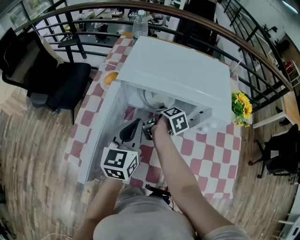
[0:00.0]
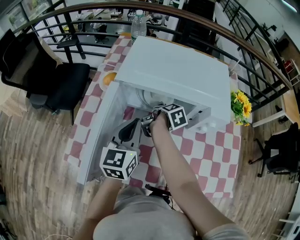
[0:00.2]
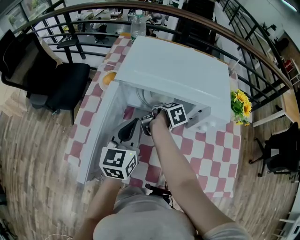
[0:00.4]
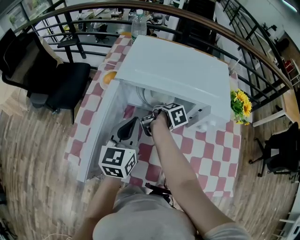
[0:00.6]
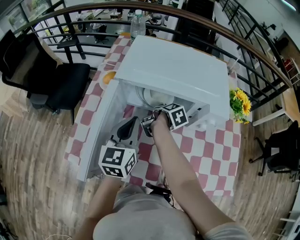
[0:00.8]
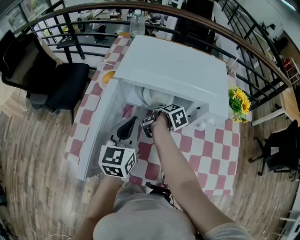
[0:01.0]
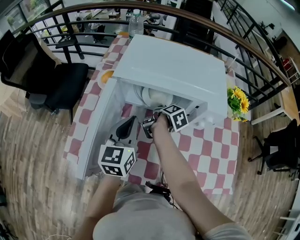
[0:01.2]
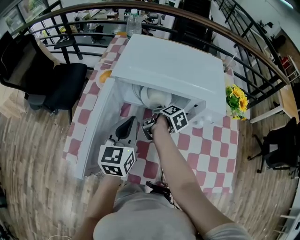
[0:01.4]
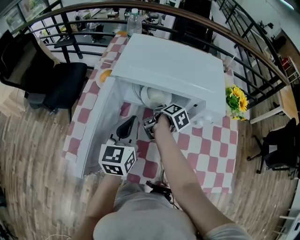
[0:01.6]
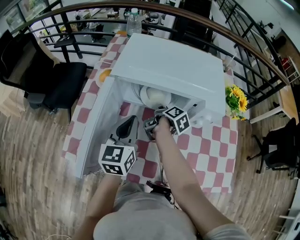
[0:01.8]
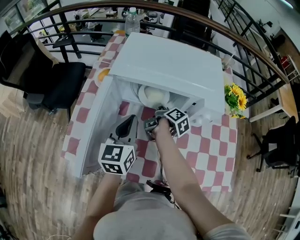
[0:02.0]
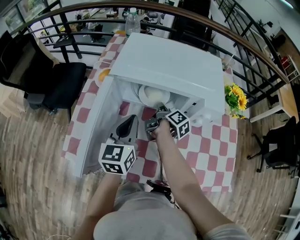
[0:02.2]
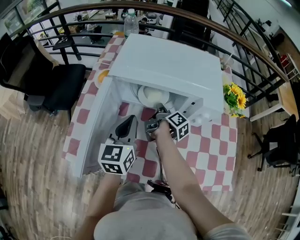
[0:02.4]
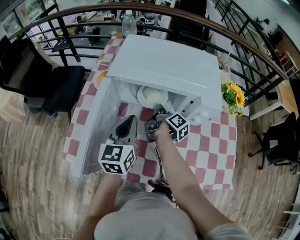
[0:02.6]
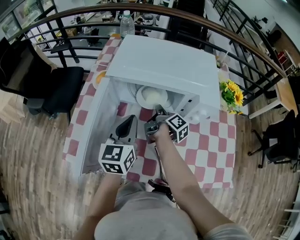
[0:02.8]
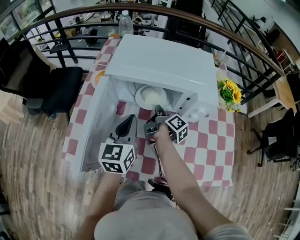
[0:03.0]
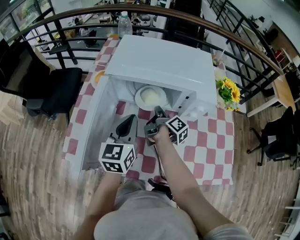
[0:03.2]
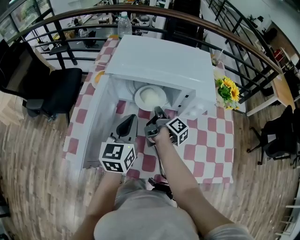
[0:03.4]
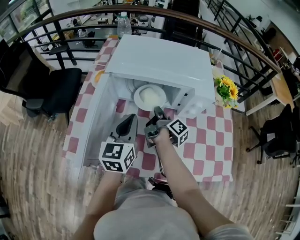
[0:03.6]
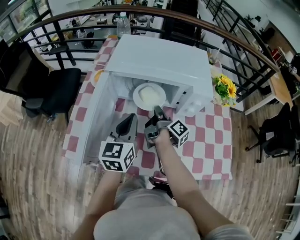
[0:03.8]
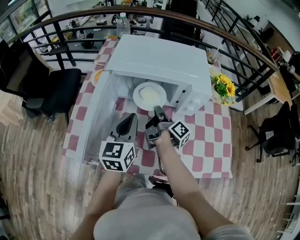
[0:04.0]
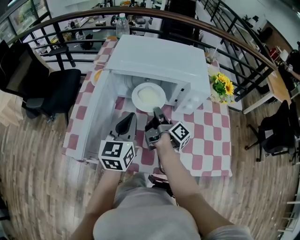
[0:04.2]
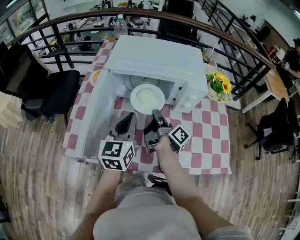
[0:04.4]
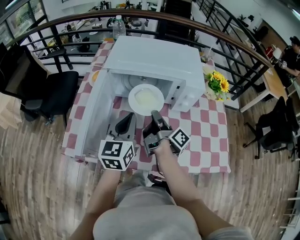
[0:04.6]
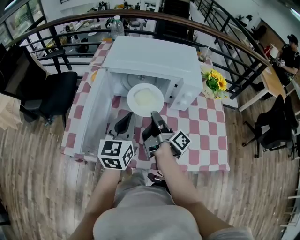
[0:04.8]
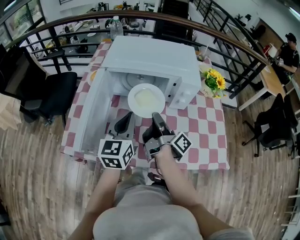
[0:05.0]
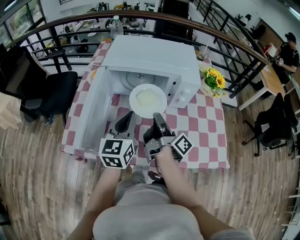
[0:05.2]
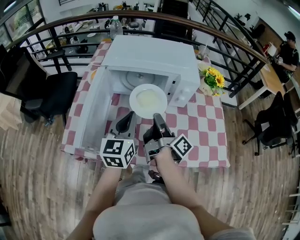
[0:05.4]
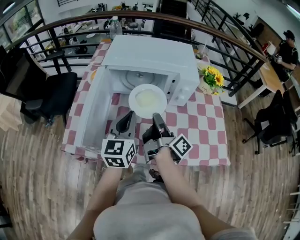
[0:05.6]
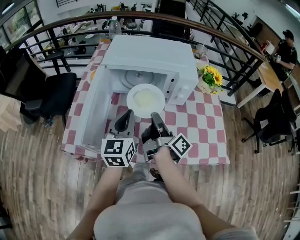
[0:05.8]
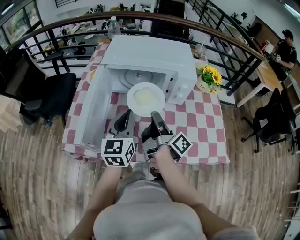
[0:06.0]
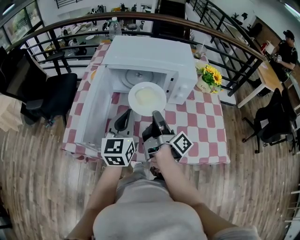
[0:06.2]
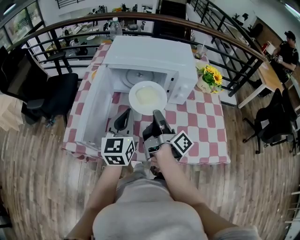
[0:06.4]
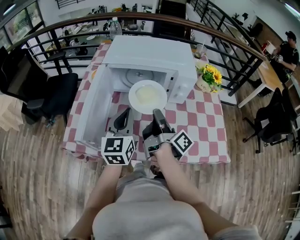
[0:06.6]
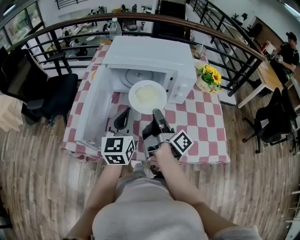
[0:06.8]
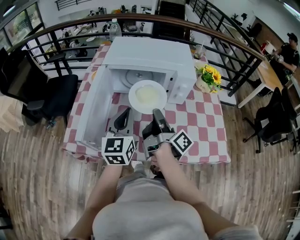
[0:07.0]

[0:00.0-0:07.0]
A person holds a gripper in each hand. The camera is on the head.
0:00.0 to 0:01.4: The right gripper closes up.
0:01.4 to 0:02.8: The right gripper changes its angle by some 30 degrees, and closes its fingers.
0:02.8 to 0:04.2: The right gripper is displaced backward and upward by roughly 10 cm, while the left gripper changes place by roughly 5 cm.
0:04.2 to 0:05.6: The right gripper goes roughly 10 cm backward and upward.
0:05.6 to 0:07.0: The grippers stay close to where they were, moving slightly.

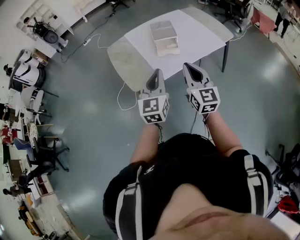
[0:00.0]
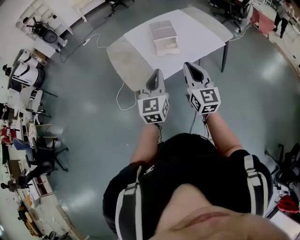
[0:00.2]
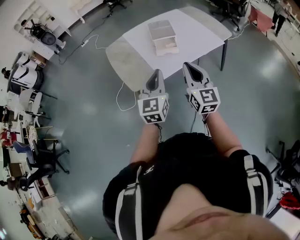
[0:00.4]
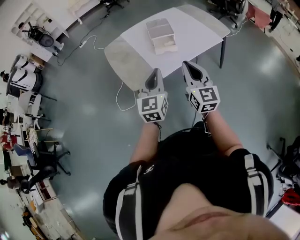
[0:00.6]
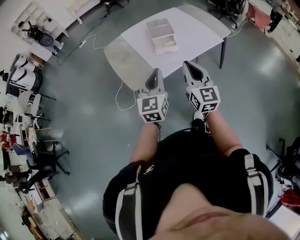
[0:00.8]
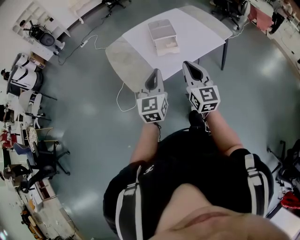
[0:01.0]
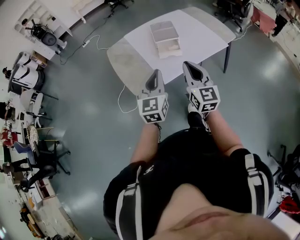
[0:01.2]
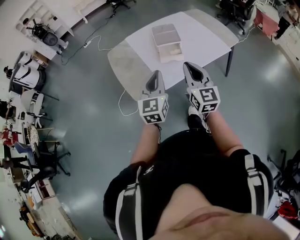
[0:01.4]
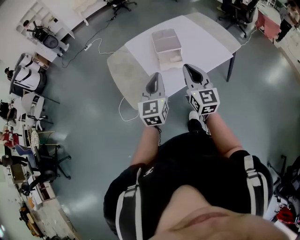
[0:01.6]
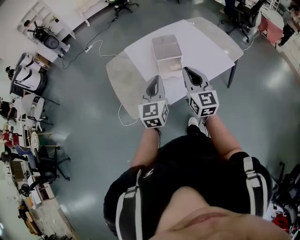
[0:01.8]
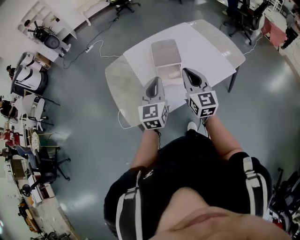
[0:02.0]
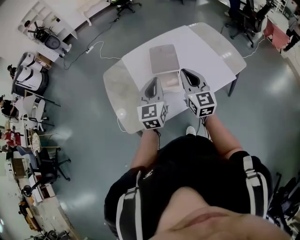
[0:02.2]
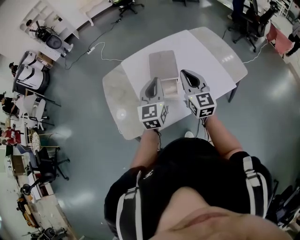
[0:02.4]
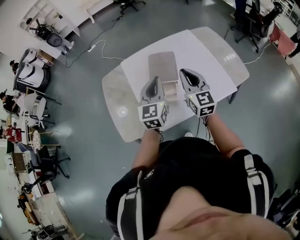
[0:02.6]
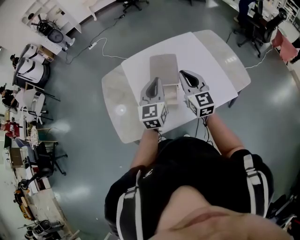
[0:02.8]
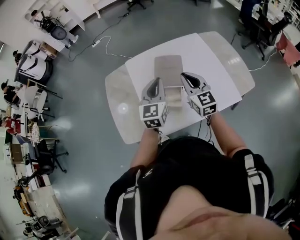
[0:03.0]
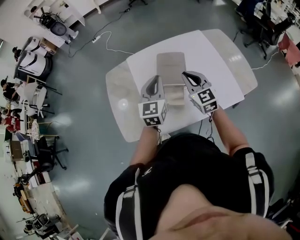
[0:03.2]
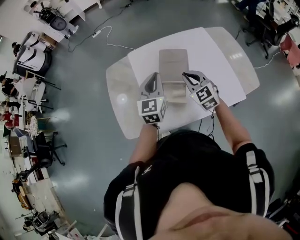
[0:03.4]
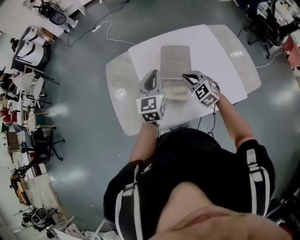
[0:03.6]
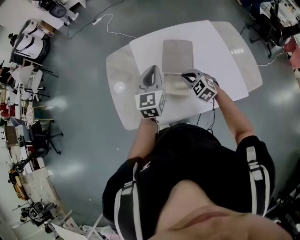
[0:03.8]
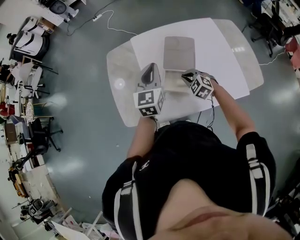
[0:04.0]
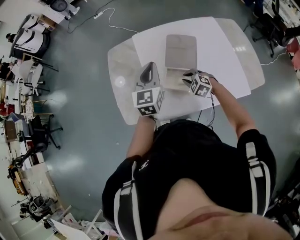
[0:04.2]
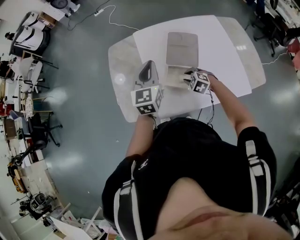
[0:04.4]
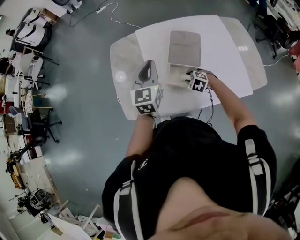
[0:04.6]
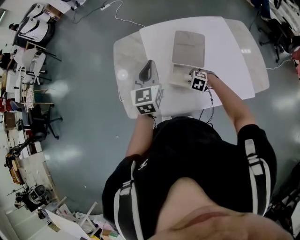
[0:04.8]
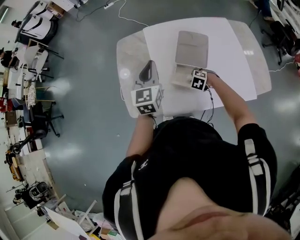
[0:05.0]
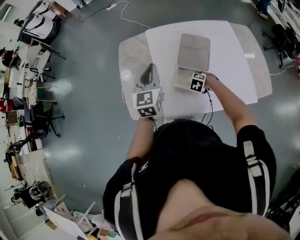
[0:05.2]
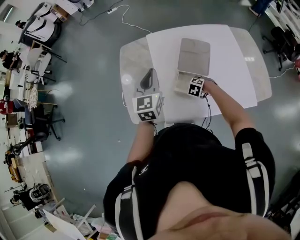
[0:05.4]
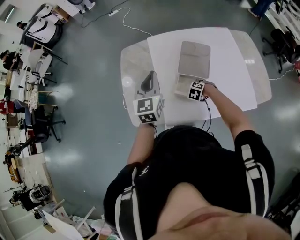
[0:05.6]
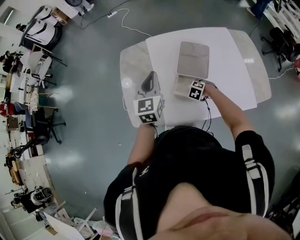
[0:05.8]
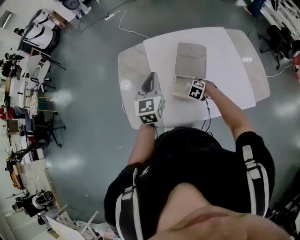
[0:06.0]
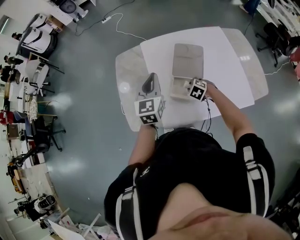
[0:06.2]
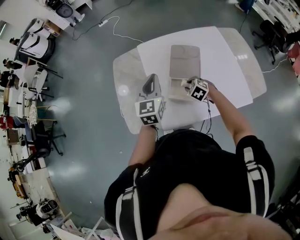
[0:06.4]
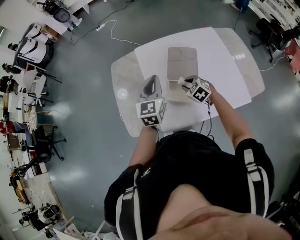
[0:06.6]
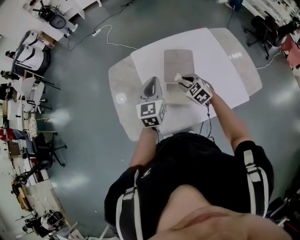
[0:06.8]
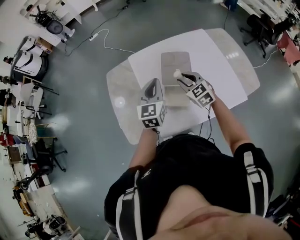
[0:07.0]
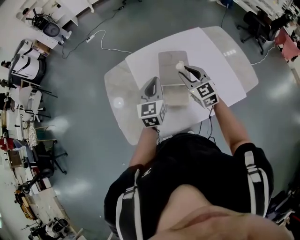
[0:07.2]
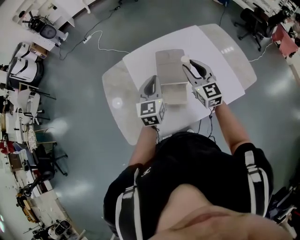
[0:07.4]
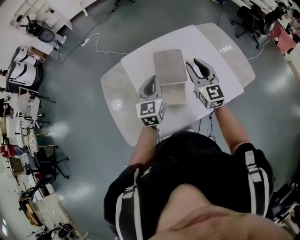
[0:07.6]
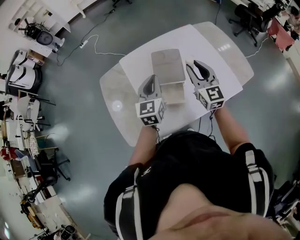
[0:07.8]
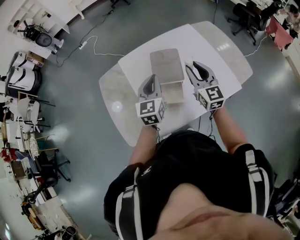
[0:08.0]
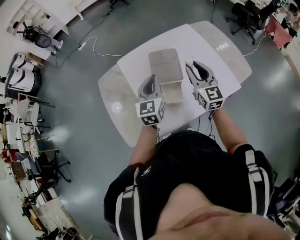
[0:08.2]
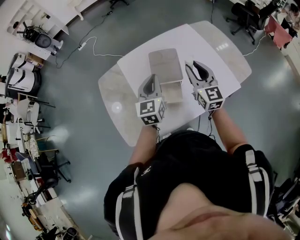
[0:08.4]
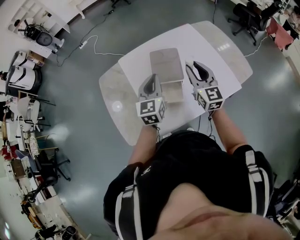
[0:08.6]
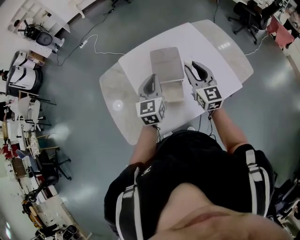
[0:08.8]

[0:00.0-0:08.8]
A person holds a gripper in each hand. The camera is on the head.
0:00.0 to 0:01.4: The two grippers go roughly 10 cm forward.
0:01.4 to 0:03.0: The two grippers go approximately 35 cm forward. The right gripper turns by approximately 20 degrees.
0:03.0 to 0:04.4: The right gripper goes about 25 cm downward, and tilts its fingers approximately 50 degrees downward. The left gripper goes approximately 10 cm to the left.
0:04.4 to 0:05.8: The left gripper changes place by some 5 cm; the right gripper heads downward, covering approximately 10 cm.
0:05.8 to 0:07.4: The left gripper shifts by about 10 cm. Meanwhile the right gripper goes roughly 35 cm upward, and tips its fingers upward by about 70 degrees.
0:07.4 to 0:08.8: The grippers move only a little.

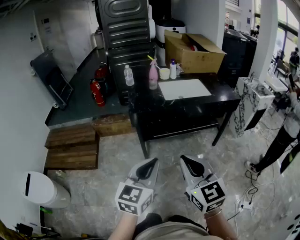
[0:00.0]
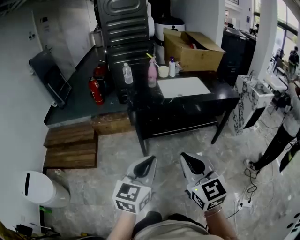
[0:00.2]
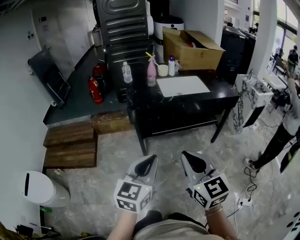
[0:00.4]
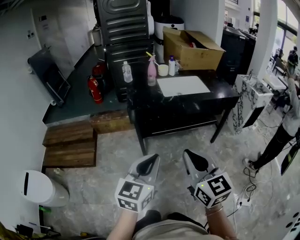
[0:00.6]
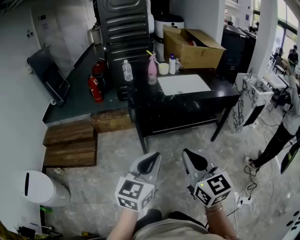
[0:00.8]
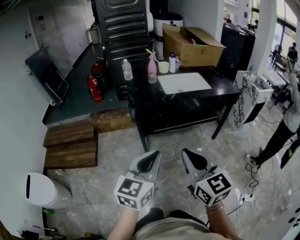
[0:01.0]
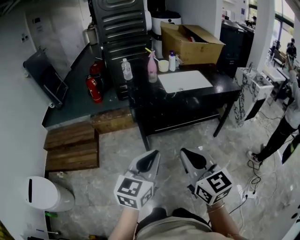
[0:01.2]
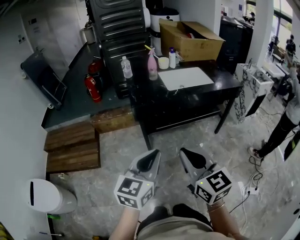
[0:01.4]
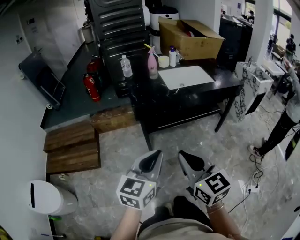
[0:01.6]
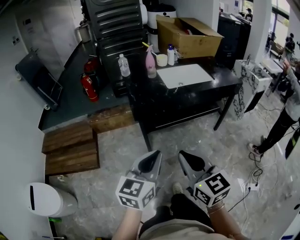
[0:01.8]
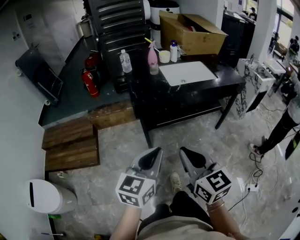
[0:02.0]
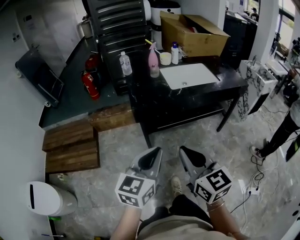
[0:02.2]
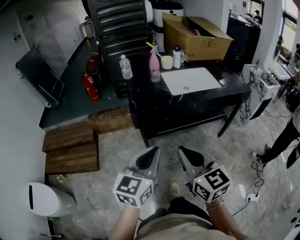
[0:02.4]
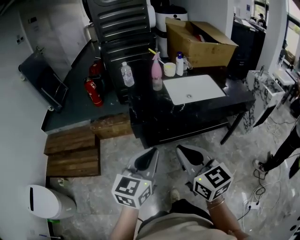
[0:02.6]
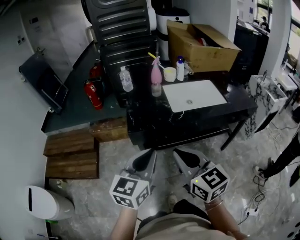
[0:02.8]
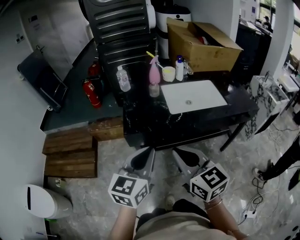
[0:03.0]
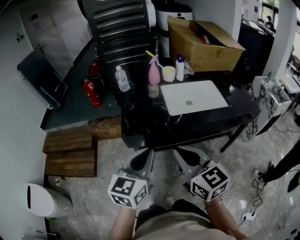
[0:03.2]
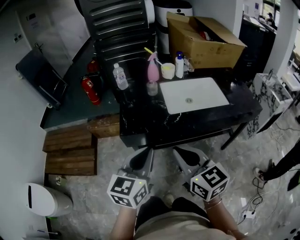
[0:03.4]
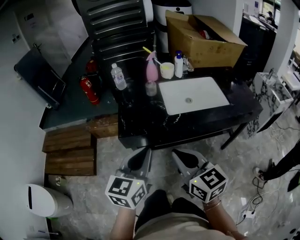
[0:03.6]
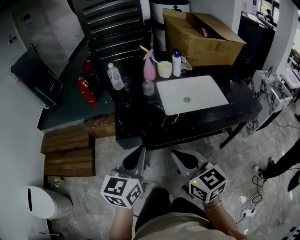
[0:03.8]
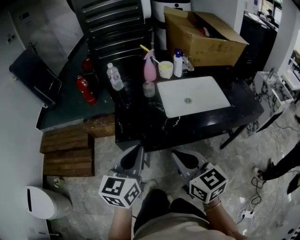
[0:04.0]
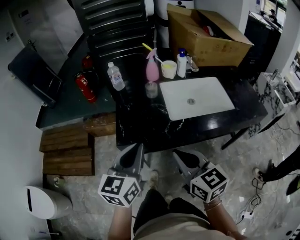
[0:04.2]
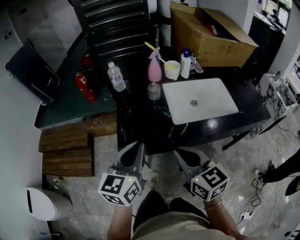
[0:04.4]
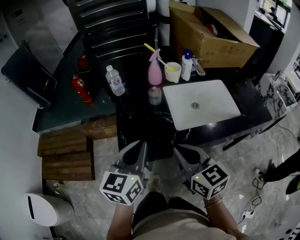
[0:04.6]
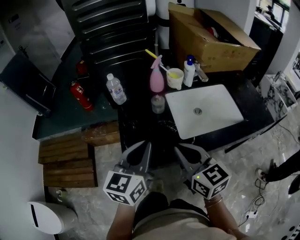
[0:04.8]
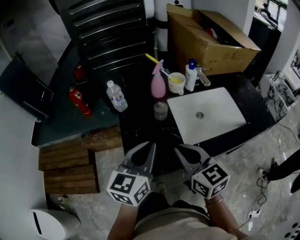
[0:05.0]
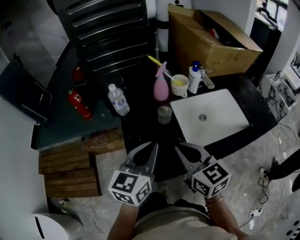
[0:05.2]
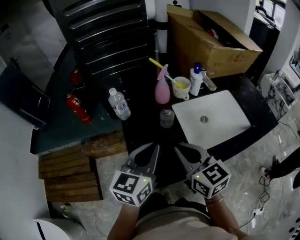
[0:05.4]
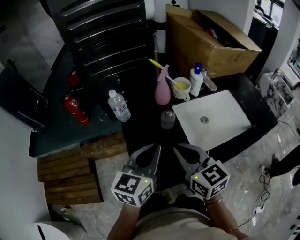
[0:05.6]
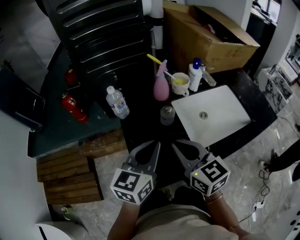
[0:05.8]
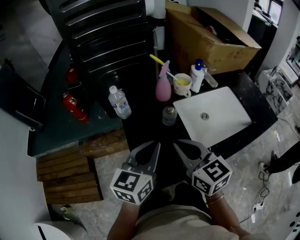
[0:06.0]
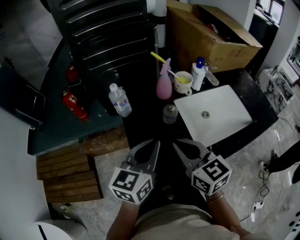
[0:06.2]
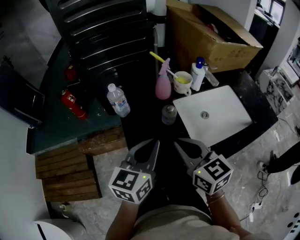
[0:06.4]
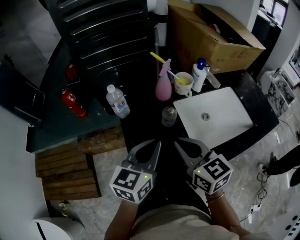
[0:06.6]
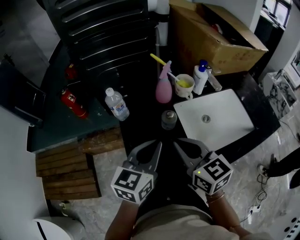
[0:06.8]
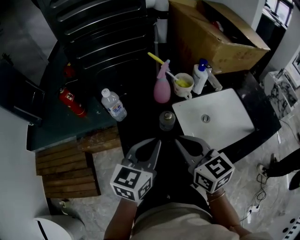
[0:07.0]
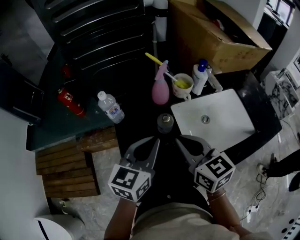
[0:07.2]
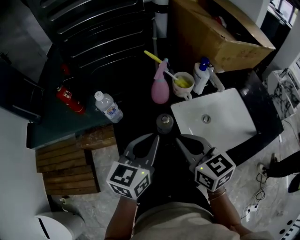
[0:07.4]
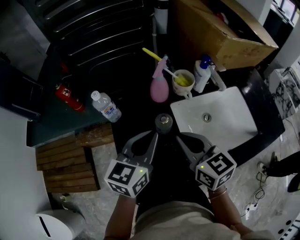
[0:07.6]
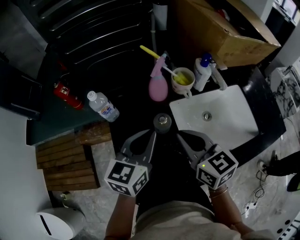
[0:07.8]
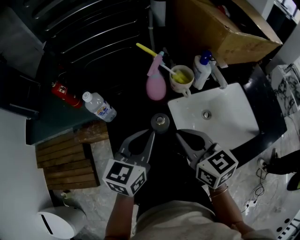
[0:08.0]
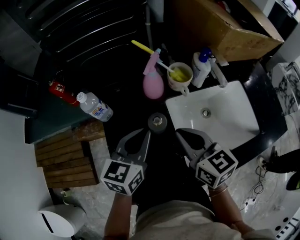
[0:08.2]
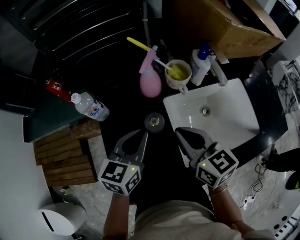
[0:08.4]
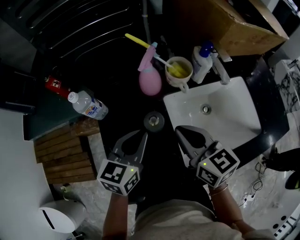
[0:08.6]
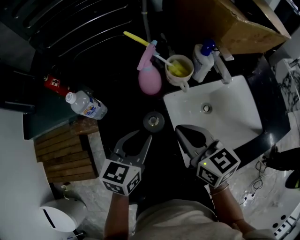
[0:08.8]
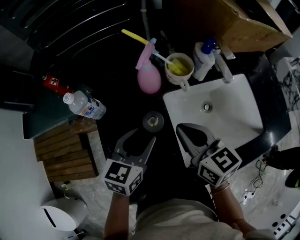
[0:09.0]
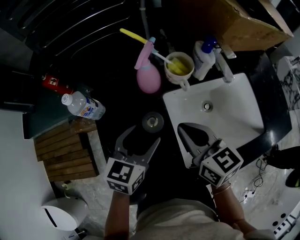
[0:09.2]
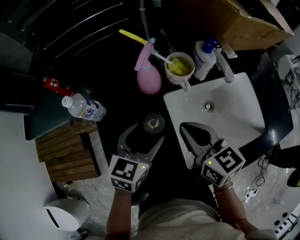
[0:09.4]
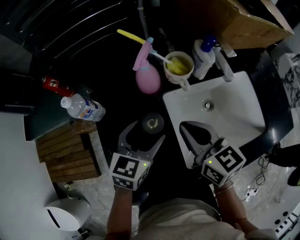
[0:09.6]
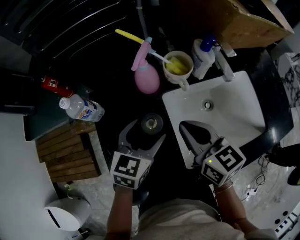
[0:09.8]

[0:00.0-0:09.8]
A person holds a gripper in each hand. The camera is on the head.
0:00.0 to 0:01.4: The grippers both shift to the left by approximately 5 cm.
0:01.4 to 0:02.8: The grippers both shift forward by some 20 cm.
0:02.8 to 0:04.2: The grippers both shift forward by some 15 cm.
0:04.2 to 0:05.6: The grippers both shift forward by about 25 cm.
0:05.6 to 0:07.0: Both grippers move forward, about 5 cm.
0:07.0 to 0:08.4: The left gripper is displaced forward and downward by roughly 10 cm. Meanwhile the right gripper is displaced forward, to the right and downward by approximately 10 cm.
0:08.4 to 0:09.8: The left gripper goes roughly 5 cm downward, and opens.
